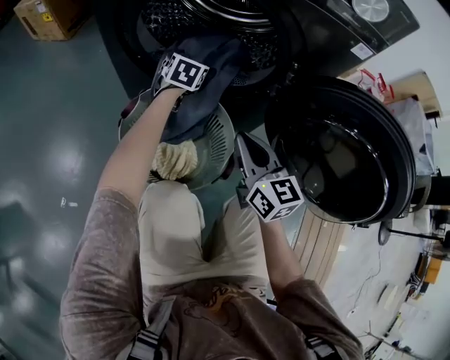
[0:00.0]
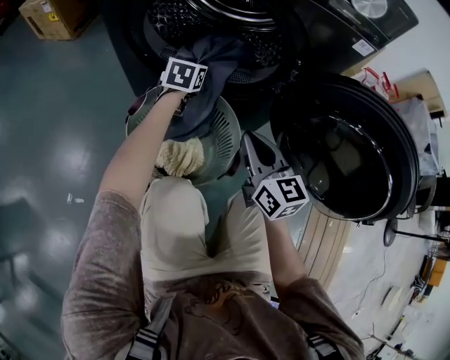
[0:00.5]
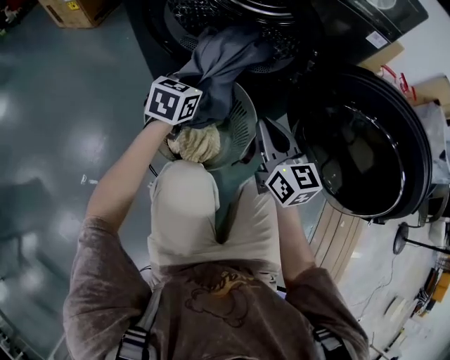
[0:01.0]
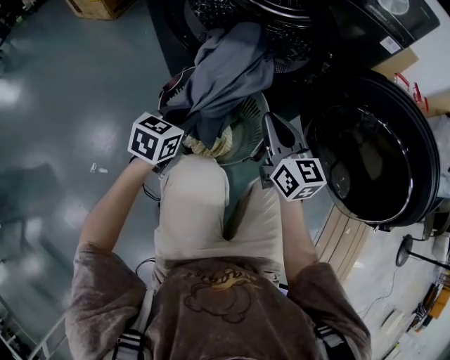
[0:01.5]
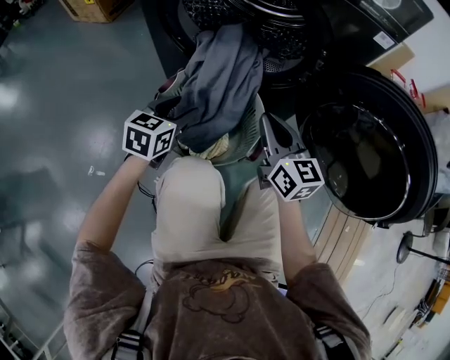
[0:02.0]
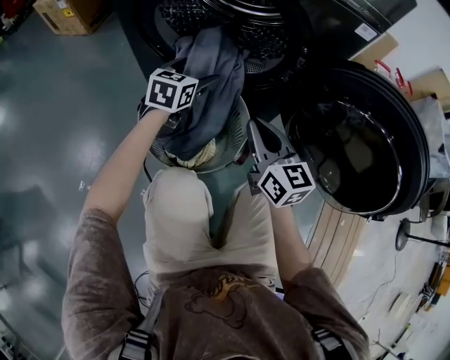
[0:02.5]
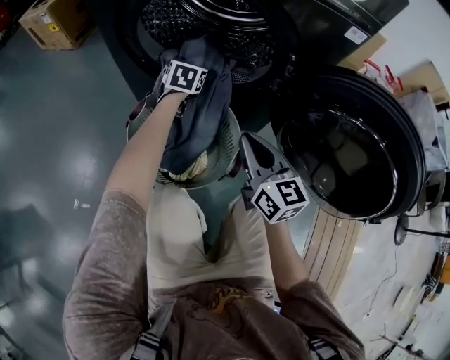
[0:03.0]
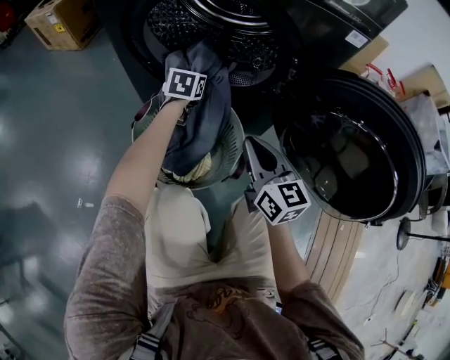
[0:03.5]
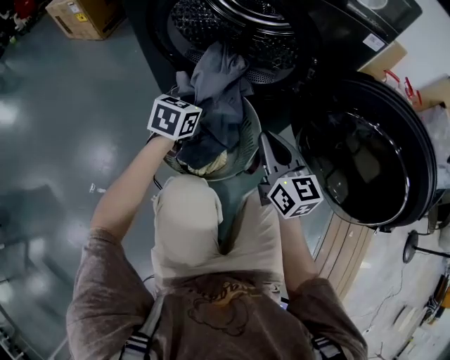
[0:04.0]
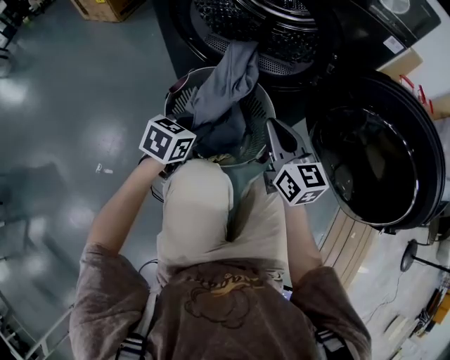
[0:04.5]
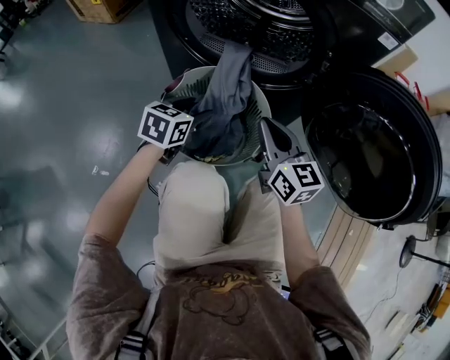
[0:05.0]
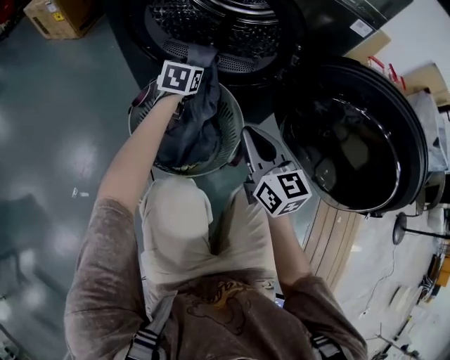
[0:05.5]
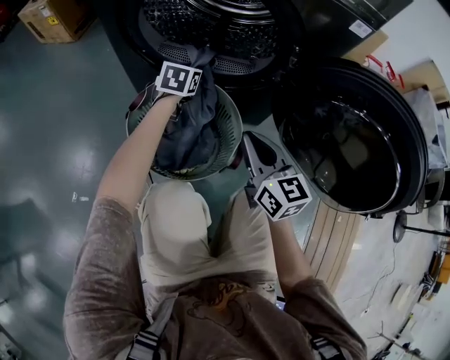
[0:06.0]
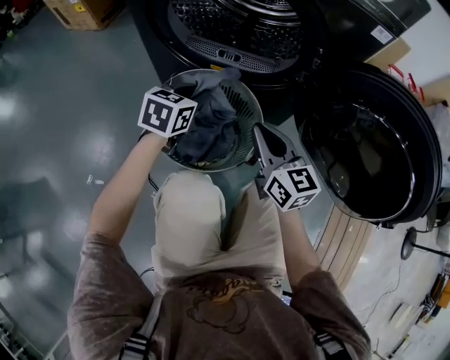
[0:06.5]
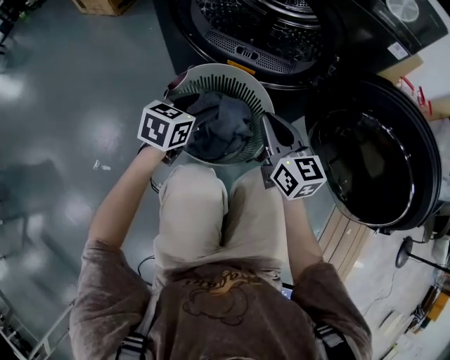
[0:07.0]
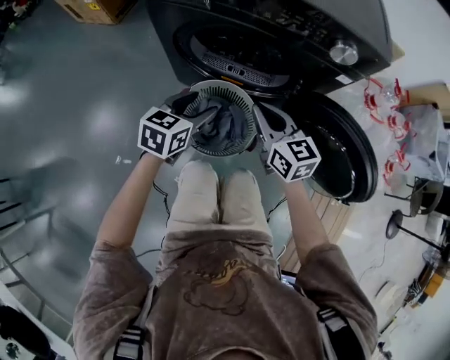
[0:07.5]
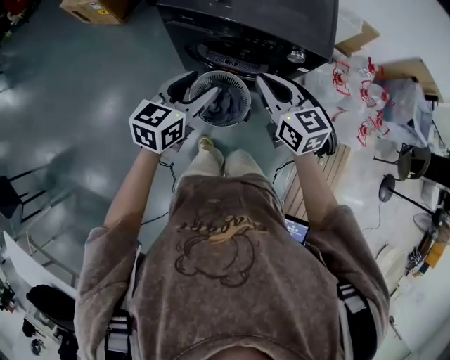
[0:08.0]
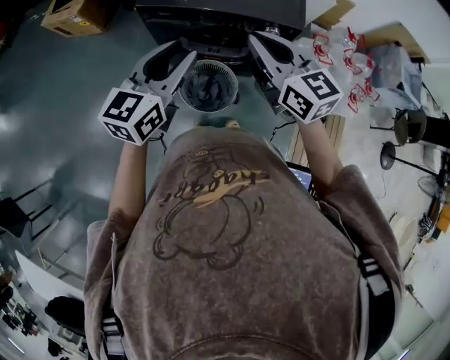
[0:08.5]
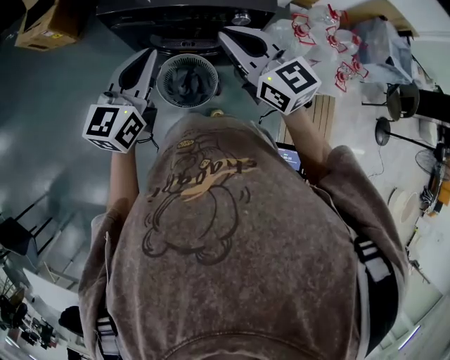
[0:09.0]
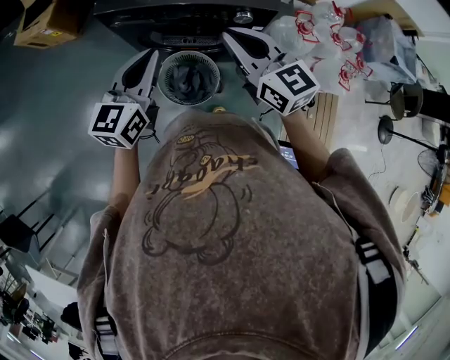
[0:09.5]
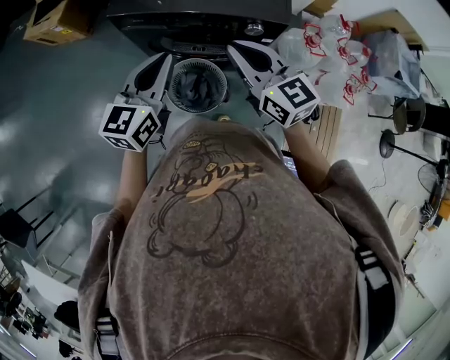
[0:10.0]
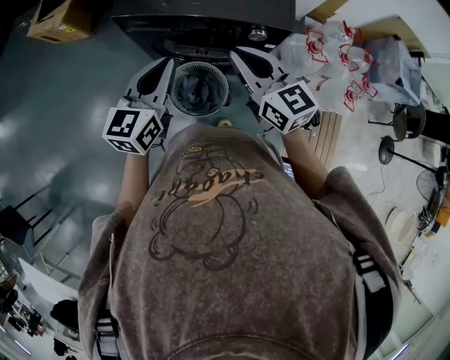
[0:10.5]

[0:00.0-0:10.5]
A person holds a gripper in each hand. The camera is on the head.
0:00.0 to 0:02.0: The left gripper moves backward, approximately 25 cm, and closes.
0:02.0 to 0:04.0: The left gripper moves to the right, roughly 5 cm, travels forward and back again, some 25 cm each way, and opens and closes again.
0:04.0 to 0:06.5: The left gripper goes forward and backward, approximately 25 cm each way, reversing 2 times, and opens and closes again.
0:06.5 to 0:08.5: Both grippers travel together upward, approximately 70 cm. The left gripper turns by approximately 30 degrees.
0:08.5 to 0:10.5: Both grippers travel together downward, some 5 cm.

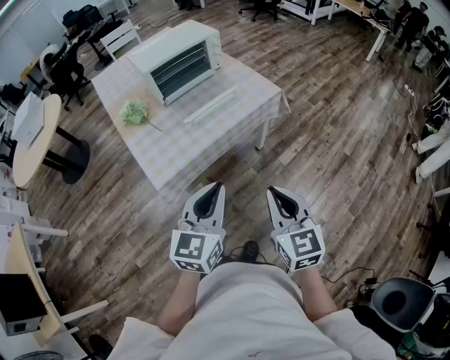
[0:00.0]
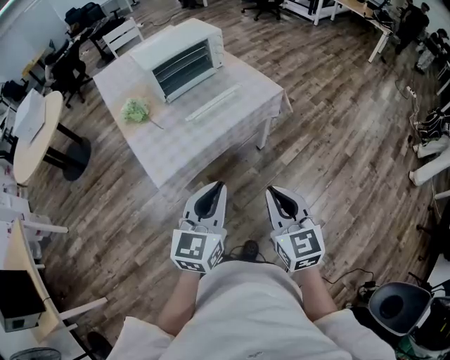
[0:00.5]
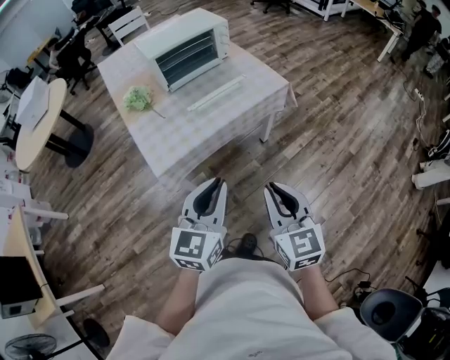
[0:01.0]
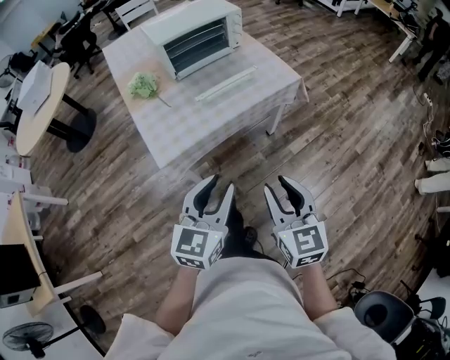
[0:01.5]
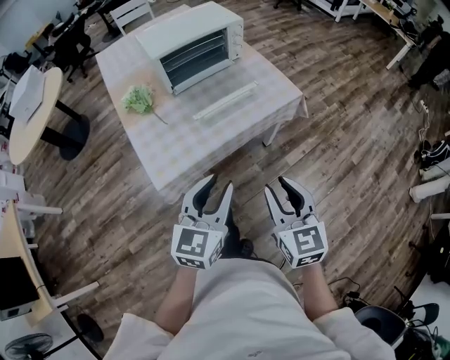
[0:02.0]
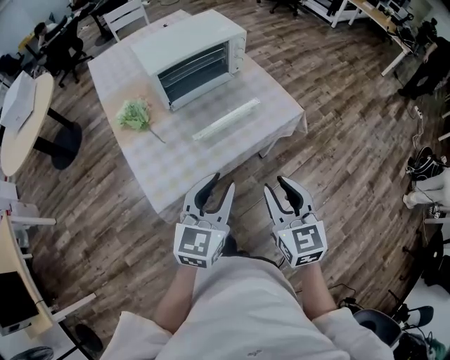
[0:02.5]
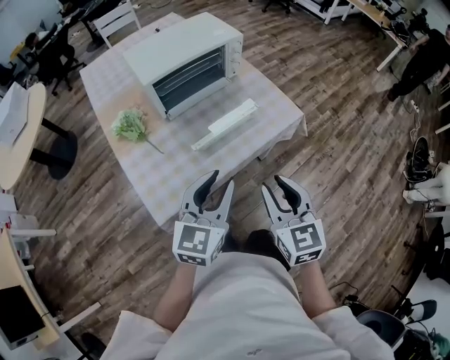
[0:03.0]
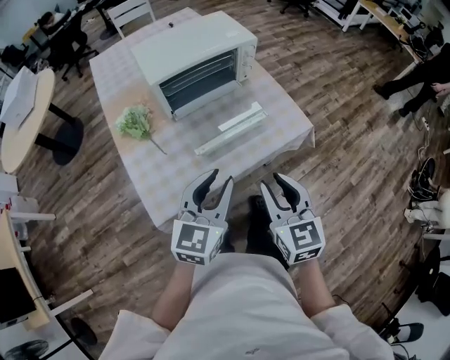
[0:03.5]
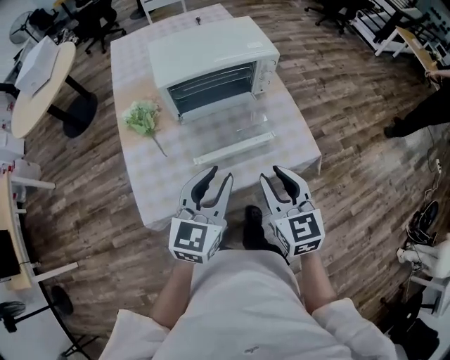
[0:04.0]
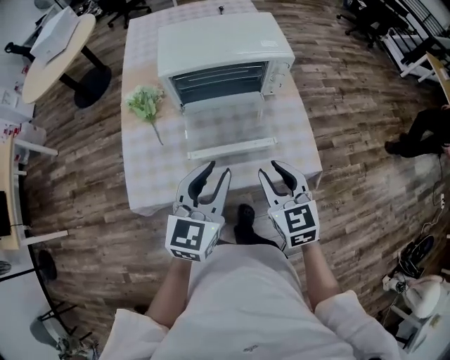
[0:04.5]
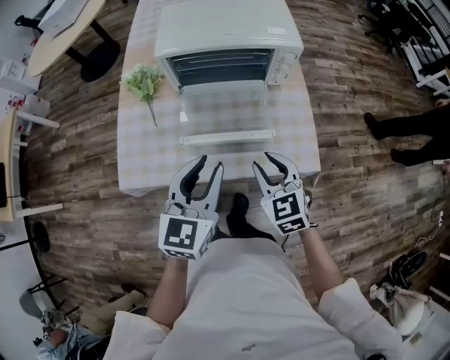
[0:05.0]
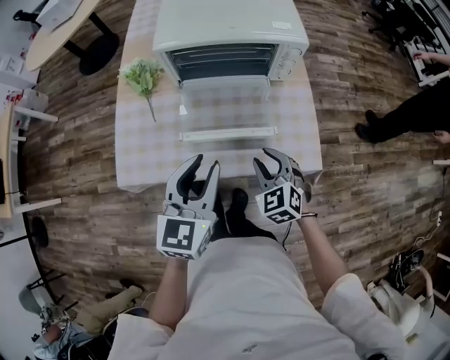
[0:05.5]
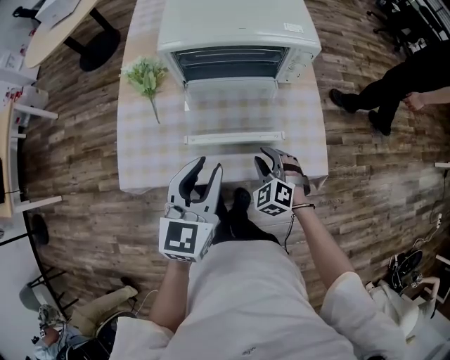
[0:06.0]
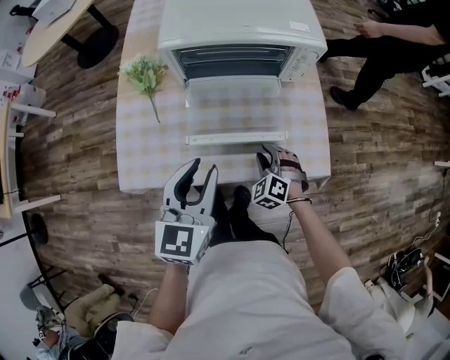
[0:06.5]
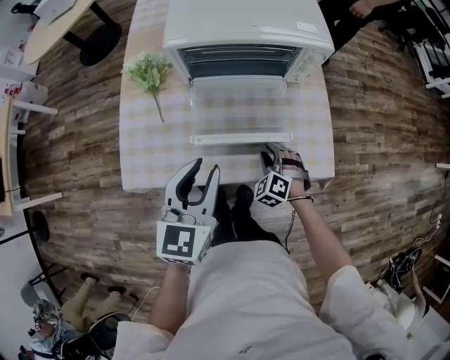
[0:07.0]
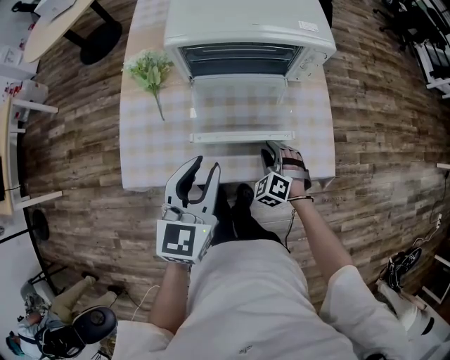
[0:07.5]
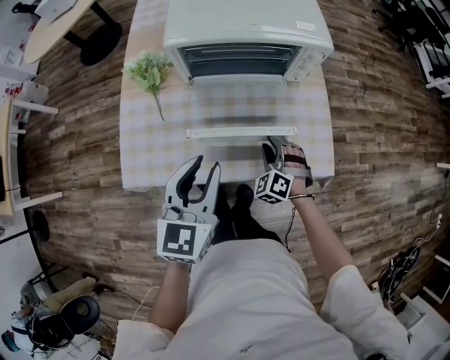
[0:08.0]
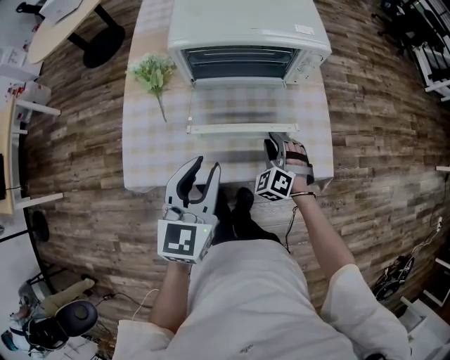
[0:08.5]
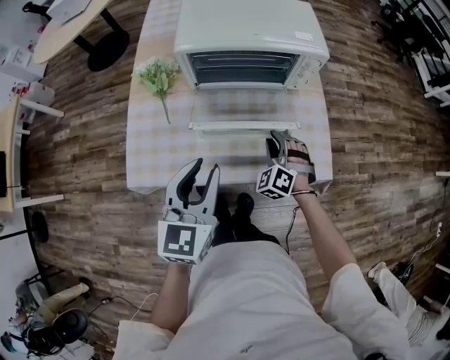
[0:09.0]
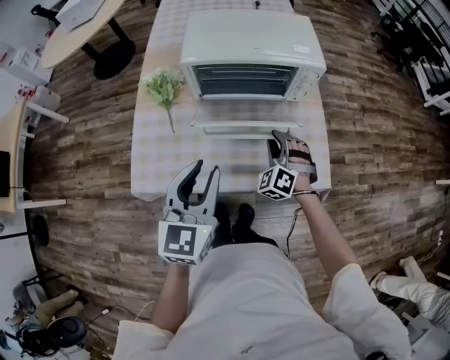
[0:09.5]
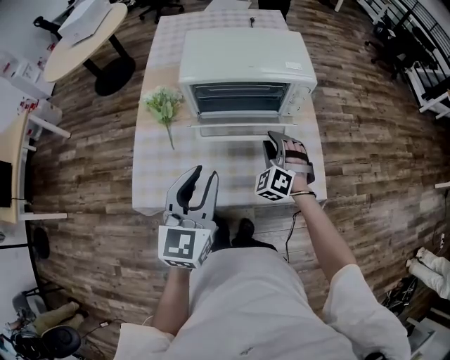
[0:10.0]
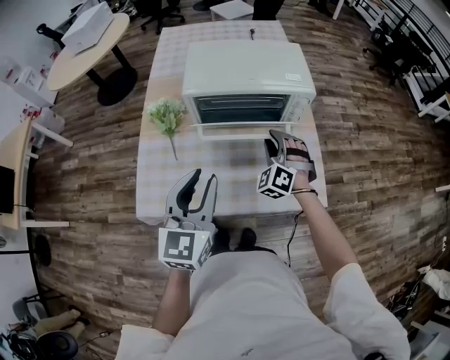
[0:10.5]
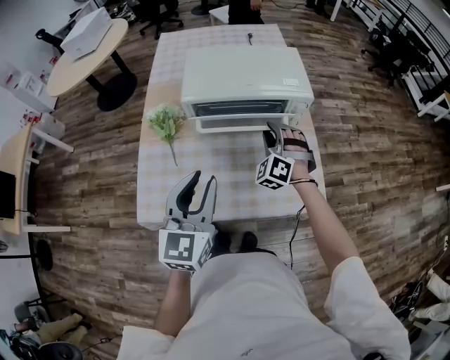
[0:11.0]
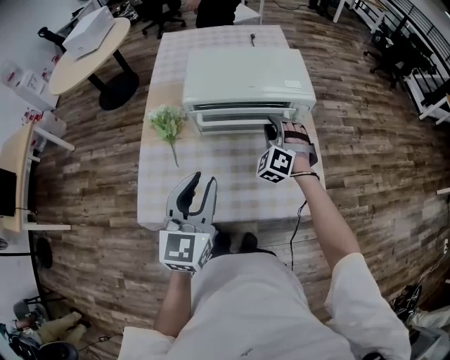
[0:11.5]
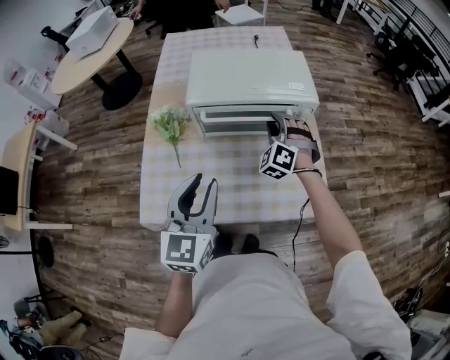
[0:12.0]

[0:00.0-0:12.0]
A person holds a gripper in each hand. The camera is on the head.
0:00.0 to 0:02.0: Both grippers move forward, about 10 cm. The left gripper opens its fingers, while the right gripper opens its fingers.
0:02.0 to 0:04.0: Both grippers move forward, about 25 cm.
0:04.0 to 0:06.0: The left gripper shifts roughly 5 cm downward, and rotates some 20 degrees, while the right gripper shifts about 25 cm downward and forward, and rolls counterclockwise, seen from behind, by roughly 50 degrees.
0:06.0 to 0:08.0: The grippers stay close to where they were, moving slightly.
0:08.0 to 0:10.0: The right gripper is displaced upward and forward by approximately 15 cm. The left gripper shifts roughly 5 cm upward.
0:10.0 to 0:12.0: The right gripper travels forward and upward by some 10 cm.

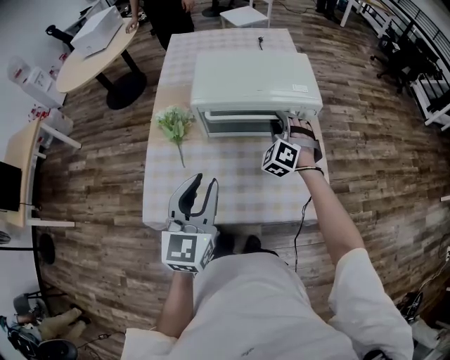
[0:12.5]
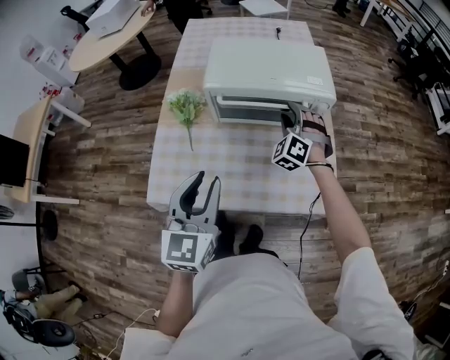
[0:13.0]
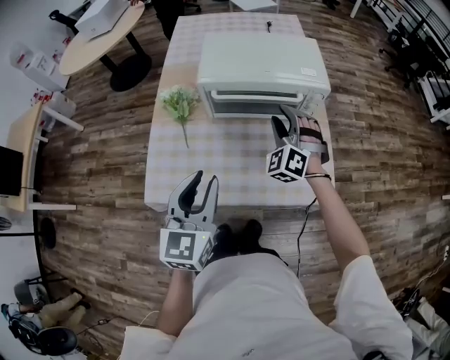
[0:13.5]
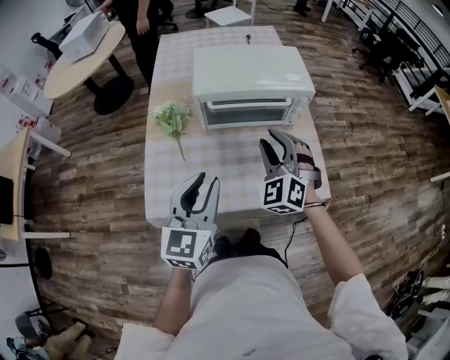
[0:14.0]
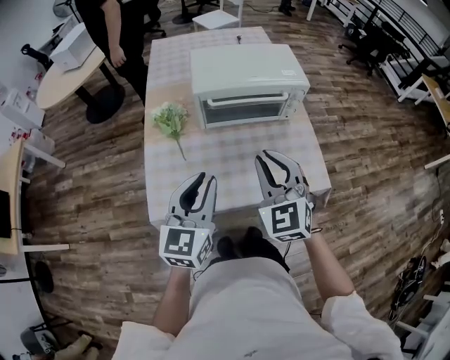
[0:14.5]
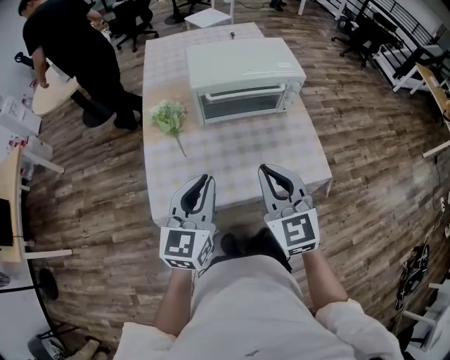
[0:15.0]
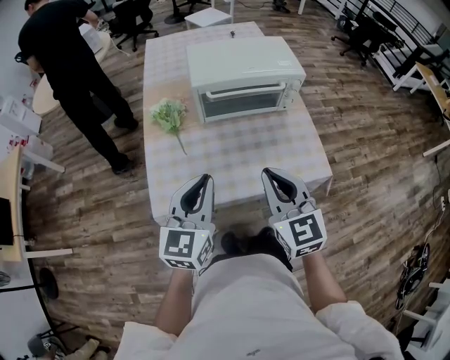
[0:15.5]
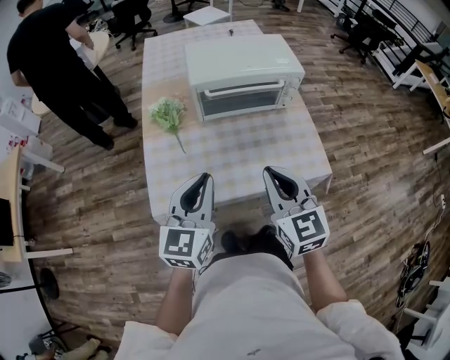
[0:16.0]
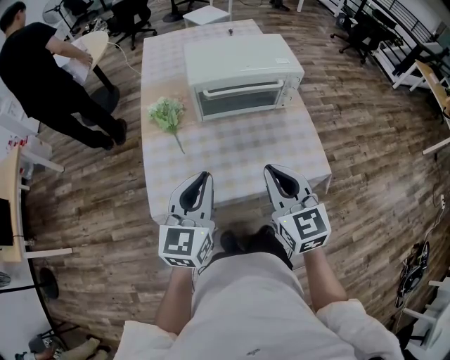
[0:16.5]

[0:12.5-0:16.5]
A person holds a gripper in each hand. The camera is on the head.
0:12.5 to 0:14.5: The right gripper heads backward and upward, covering some 30 cm, and rotates about 40 degrees, while the left gripper travels backward and to the left by roughly 10 cm.
0:14.5 to 0:16.5: The right gripper travels backward by some 5 cm, and rotates some 30 degrees.
